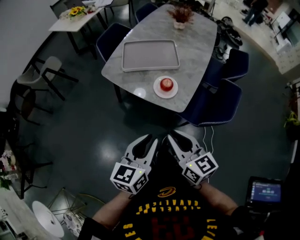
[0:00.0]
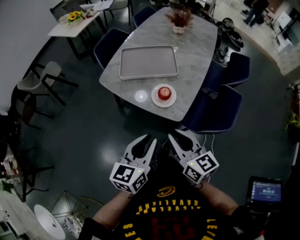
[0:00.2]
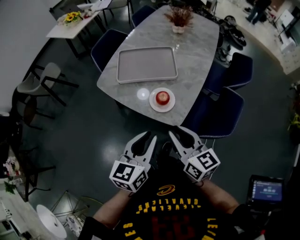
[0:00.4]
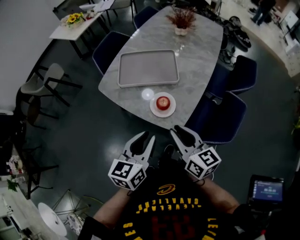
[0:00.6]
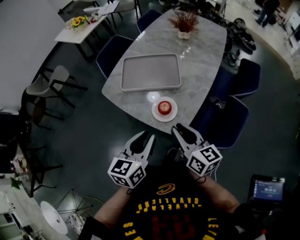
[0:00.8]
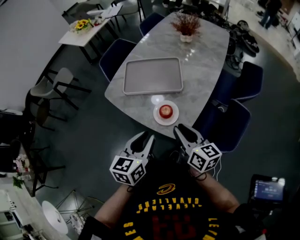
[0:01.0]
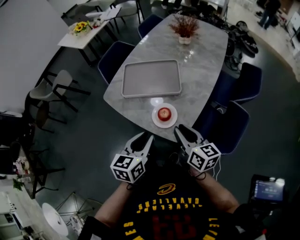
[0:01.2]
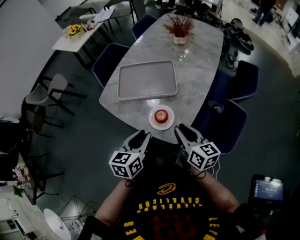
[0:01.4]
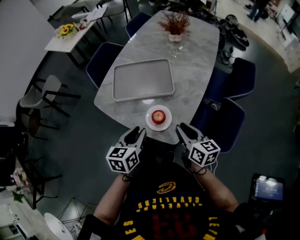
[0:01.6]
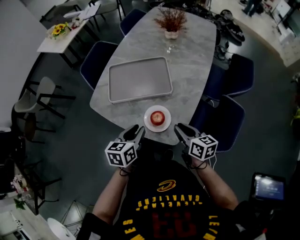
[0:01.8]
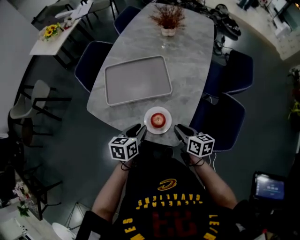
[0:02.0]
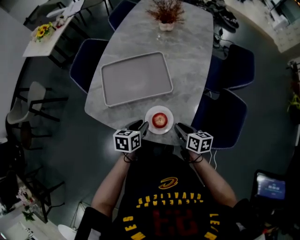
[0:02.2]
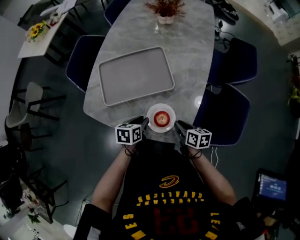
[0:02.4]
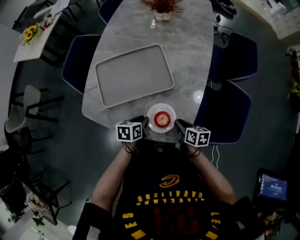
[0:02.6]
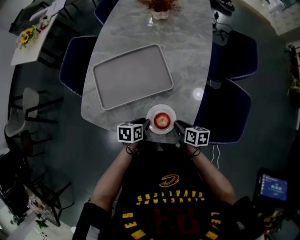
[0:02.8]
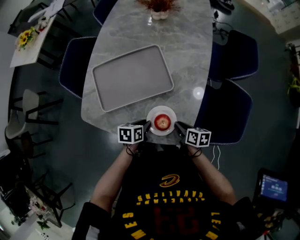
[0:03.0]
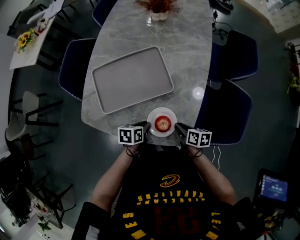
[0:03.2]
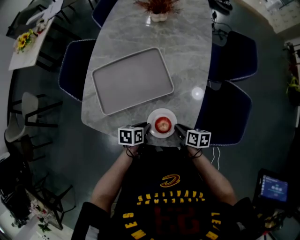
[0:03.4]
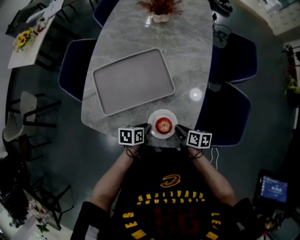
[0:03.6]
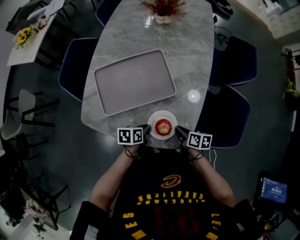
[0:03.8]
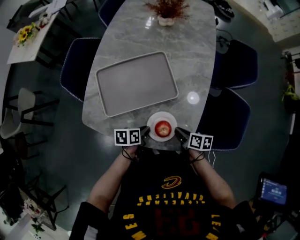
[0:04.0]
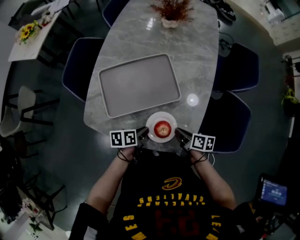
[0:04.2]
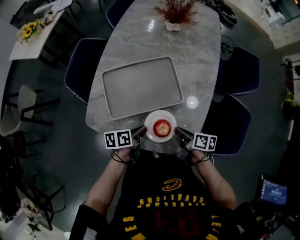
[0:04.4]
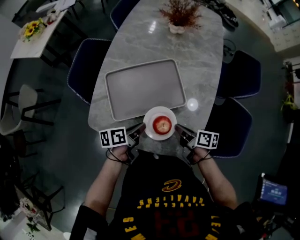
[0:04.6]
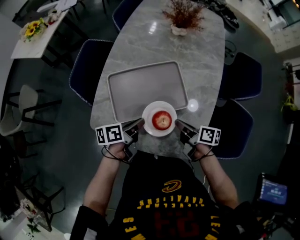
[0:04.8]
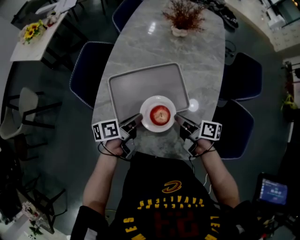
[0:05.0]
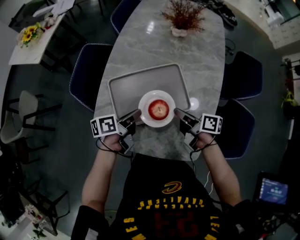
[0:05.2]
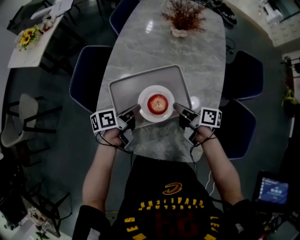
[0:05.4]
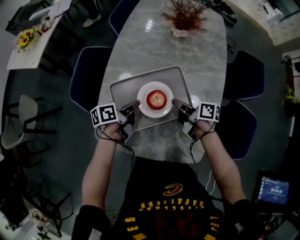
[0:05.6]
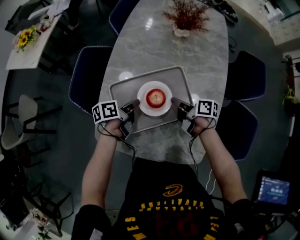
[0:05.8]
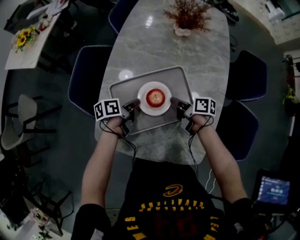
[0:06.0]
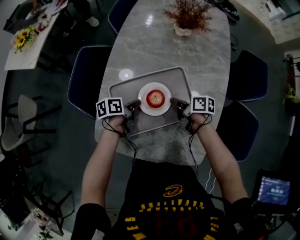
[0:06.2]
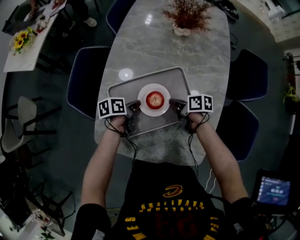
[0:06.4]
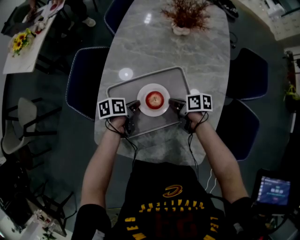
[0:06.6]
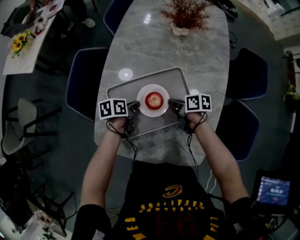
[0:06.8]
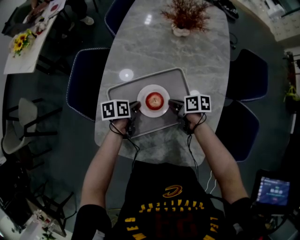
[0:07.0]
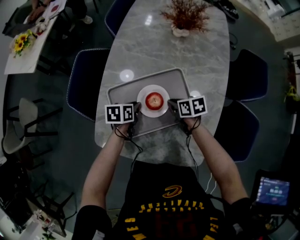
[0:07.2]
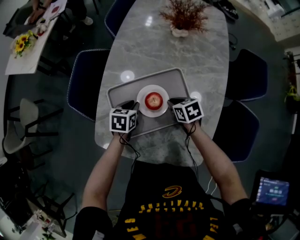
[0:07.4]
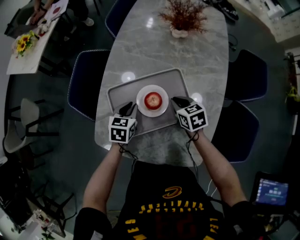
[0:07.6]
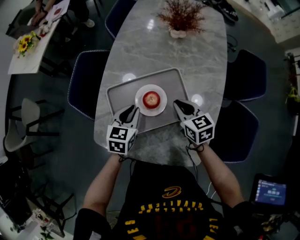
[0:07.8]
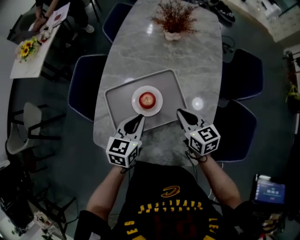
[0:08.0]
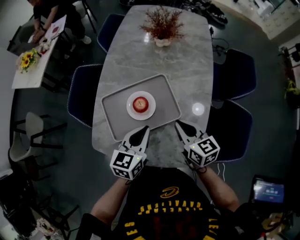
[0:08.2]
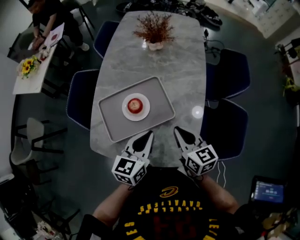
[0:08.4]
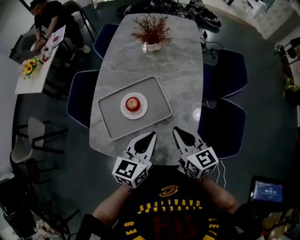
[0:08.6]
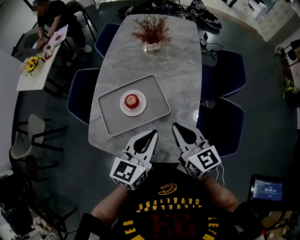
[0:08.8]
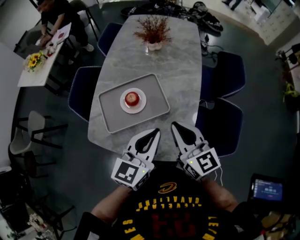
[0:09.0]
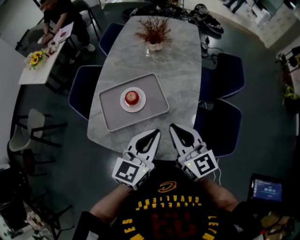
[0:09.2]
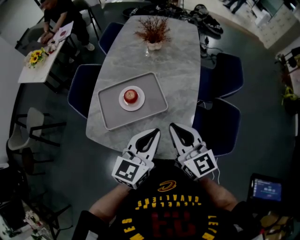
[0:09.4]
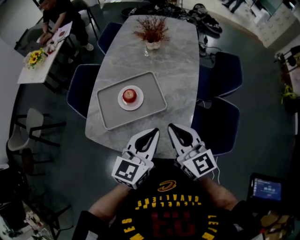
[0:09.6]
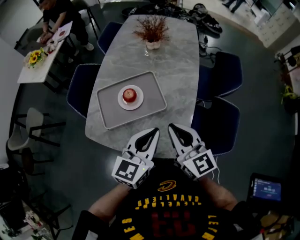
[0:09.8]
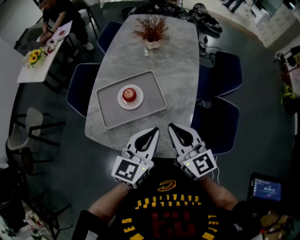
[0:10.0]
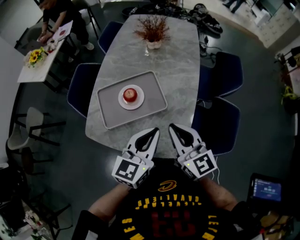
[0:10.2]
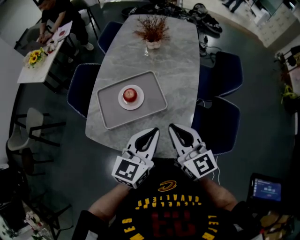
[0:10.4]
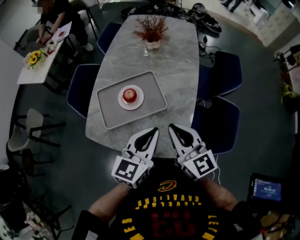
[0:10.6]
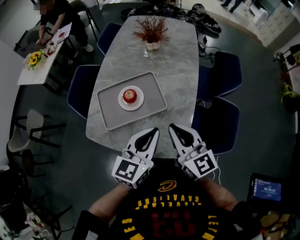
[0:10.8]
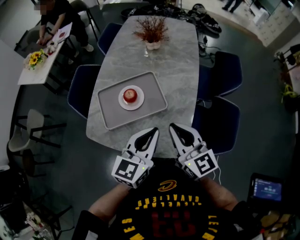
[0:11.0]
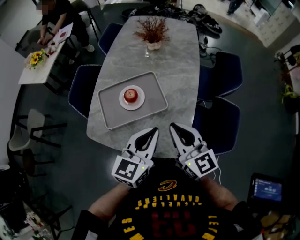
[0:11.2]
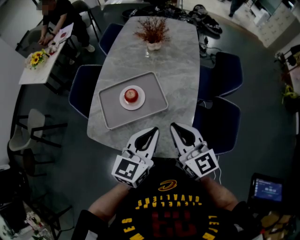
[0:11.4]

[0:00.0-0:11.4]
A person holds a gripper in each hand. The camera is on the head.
0:00.0 to 0:01.4: The right gripper is displaced forward and to the right by about 25 cm. Meanwhile the left gripper shifts approximately 20 cm forward.
0:01.4 to 0:02.8: The left gripper travels downward and forward by approximately 25 cm, and rotates approximately 40 degrees. The right gripper goes roughly 25 cm downward, and points its fingers about 30 degrees further downward.
0:02.8 to 0:04.2: The grippers move only a little.
0:04.2 to 0:05.6: The grippers both shift forward and to the left by approximately 20 cm. The left gripper rotates about 20 degrees.
0:05.6 to 0:07.2: Both grippers travel together downward, some 5 cm. The left gripper turns by roughly 40 degrees. The right gripper swivels roughly 40 degrees.
0:07.2 to 0:08.6: The left gripper is displaced upward, to the right and backward by approximately 35 cm, and angles its fingers upward, by some 30 degrees, while the right gripper is displaced upward, backward and to the right by some 30 cm, and angles its fingers upward, by about 30 degrees.
0:08.6 to 0:10.0: Both grippers move upward, about 5 cm.
0:10.0 to 0:11.4: Both grippers stay about where they are.

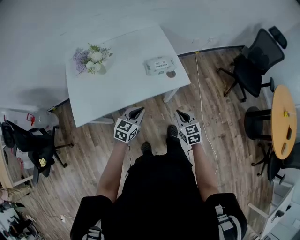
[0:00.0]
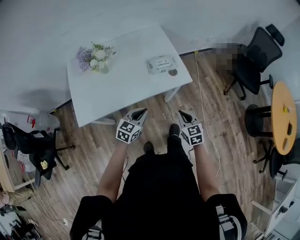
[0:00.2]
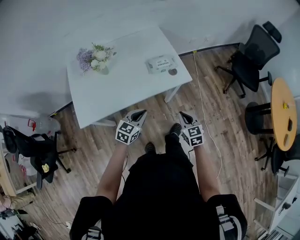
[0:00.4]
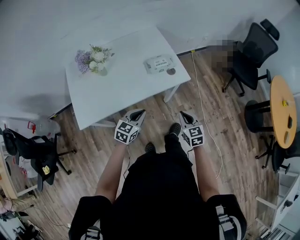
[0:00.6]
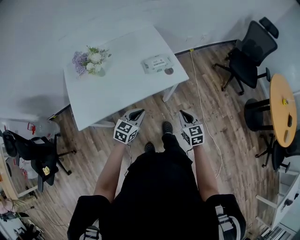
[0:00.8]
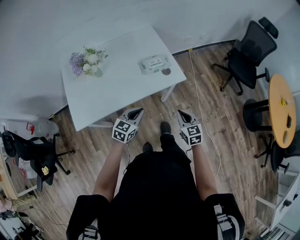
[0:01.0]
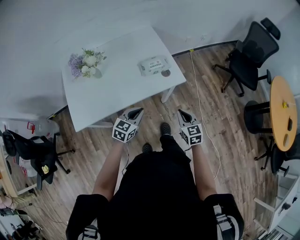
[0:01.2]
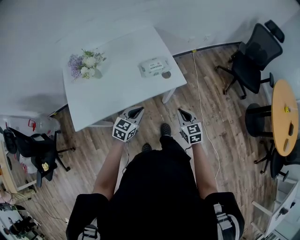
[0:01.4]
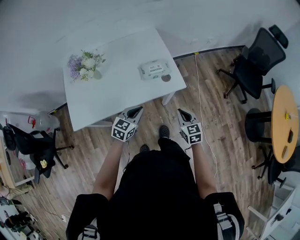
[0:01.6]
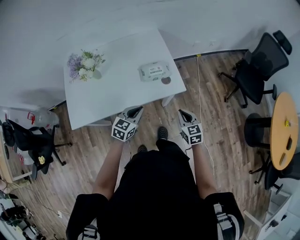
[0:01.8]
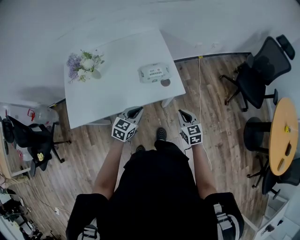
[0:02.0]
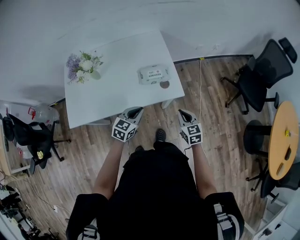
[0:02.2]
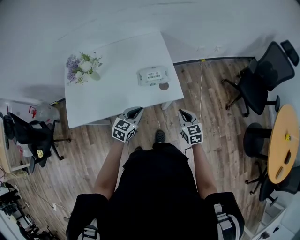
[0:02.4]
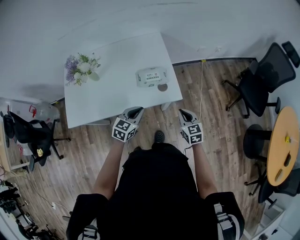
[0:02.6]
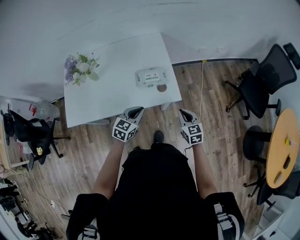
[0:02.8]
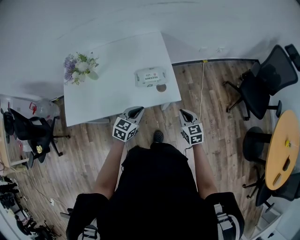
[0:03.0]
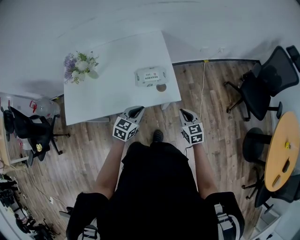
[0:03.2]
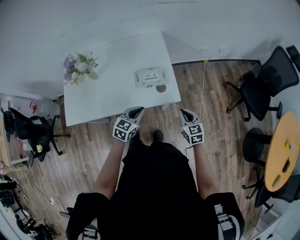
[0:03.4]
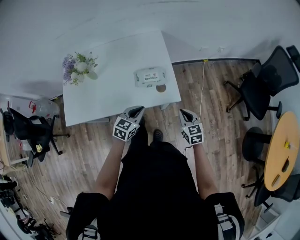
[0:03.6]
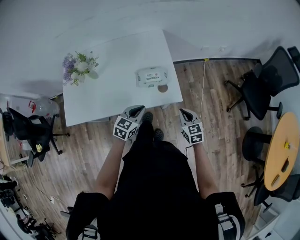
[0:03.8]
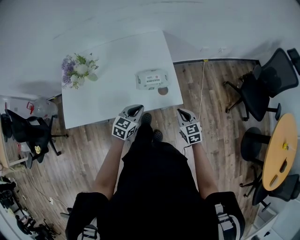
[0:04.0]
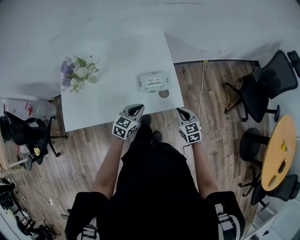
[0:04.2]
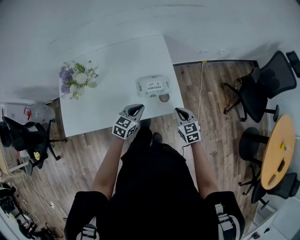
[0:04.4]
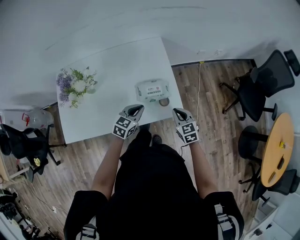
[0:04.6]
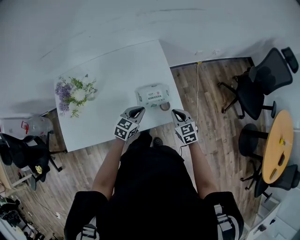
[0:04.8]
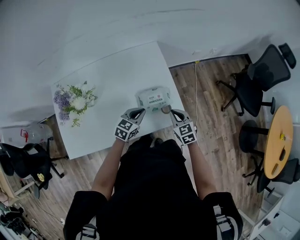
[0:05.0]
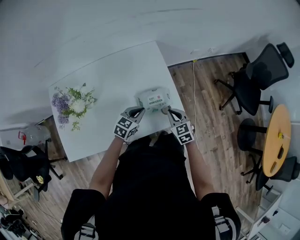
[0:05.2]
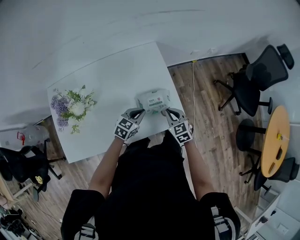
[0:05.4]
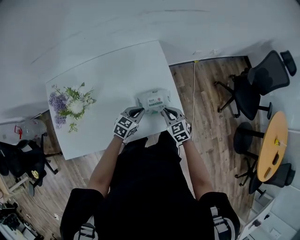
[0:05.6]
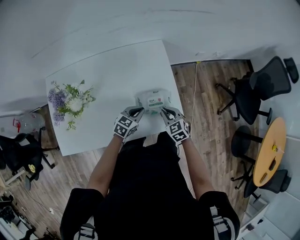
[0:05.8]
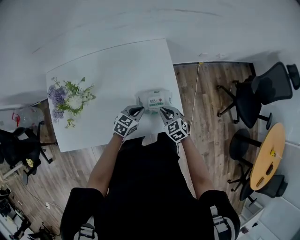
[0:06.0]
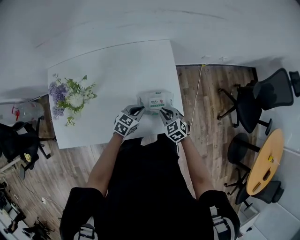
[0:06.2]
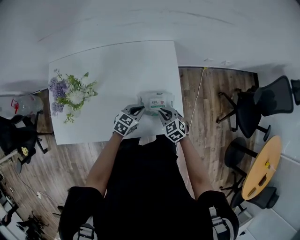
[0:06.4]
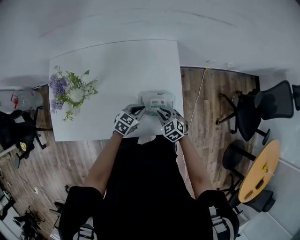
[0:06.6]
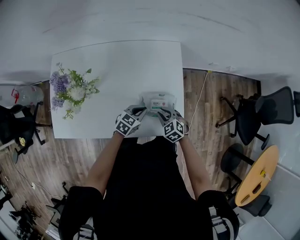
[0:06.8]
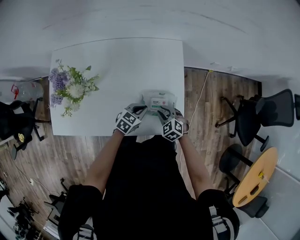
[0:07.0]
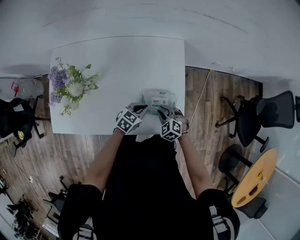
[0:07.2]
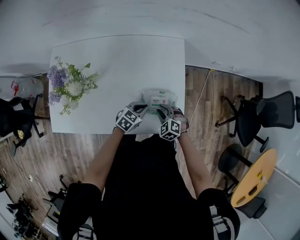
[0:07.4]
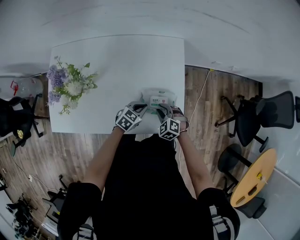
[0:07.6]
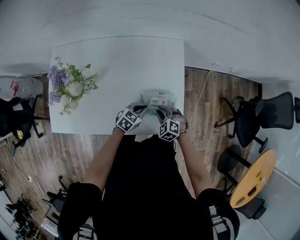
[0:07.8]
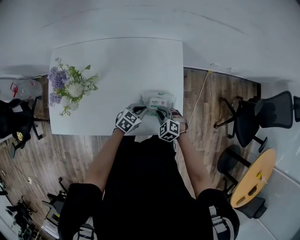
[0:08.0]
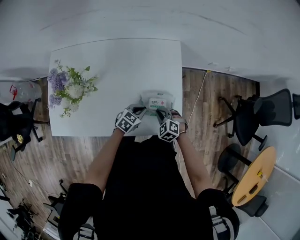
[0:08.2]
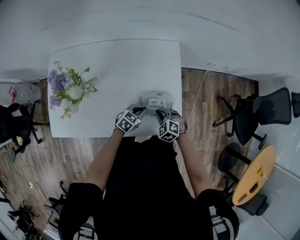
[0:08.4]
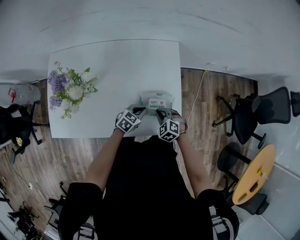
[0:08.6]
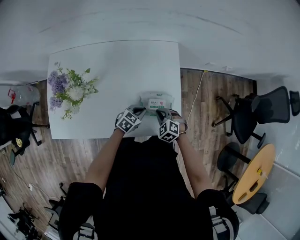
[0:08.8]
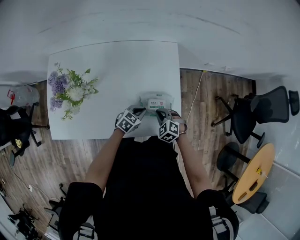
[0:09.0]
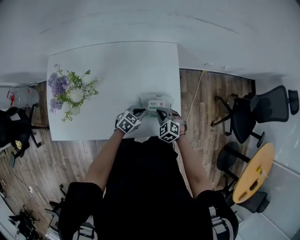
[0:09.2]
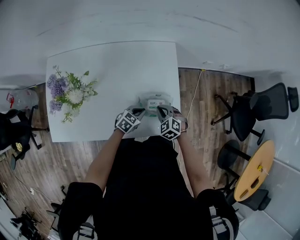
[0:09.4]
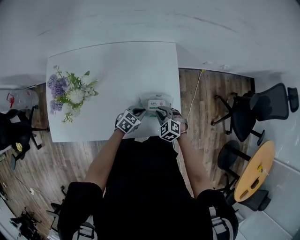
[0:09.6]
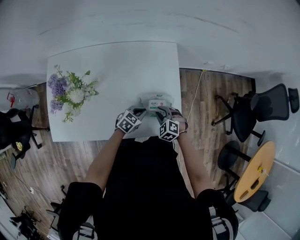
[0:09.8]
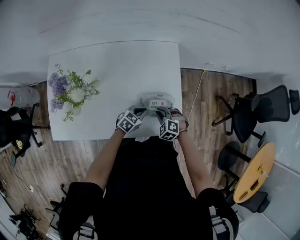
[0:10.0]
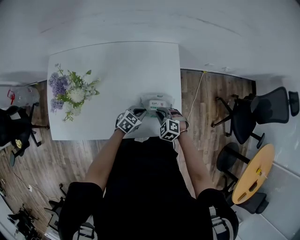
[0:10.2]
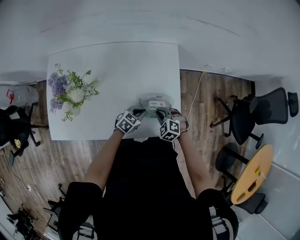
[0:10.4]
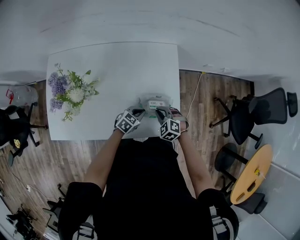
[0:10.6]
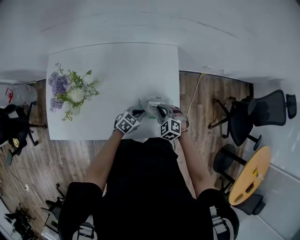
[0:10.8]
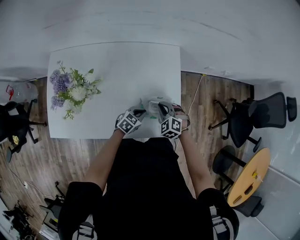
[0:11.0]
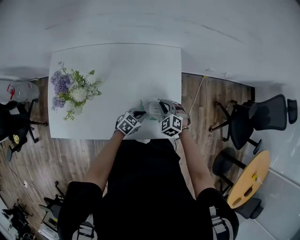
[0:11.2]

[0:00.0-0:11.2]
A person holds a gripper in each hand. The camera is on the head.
0:00.0 to 0:01.6: The left gripper moves about 5 cm, while the right gripper shifts approximately 5 cm forward.
0:01.6 to 0:03.2: The left gripper shifts about 10 cm to the right and forward. Meanwhile the right gripper travels forward and to the right by some 15 cm.
0:03.2 to 0:04.8: The grippers both shift forward and to the left by roughly 20 cm.
0:04.8 to 0:06.4: The left gripper moves downward and forward, about 10 cm; the right gripper shifts about 15 cm to the left, downward and forward, and changes its angle by roughly 30 degrees.
0:06.4 to 0:08.0: The right gripper swivels some 20 degrees.
0:08.0 to 0:09.6: The grippers move only a little.
0:09.6 to 0:11.2: The right gripper moves forward, approximately 5 cm.

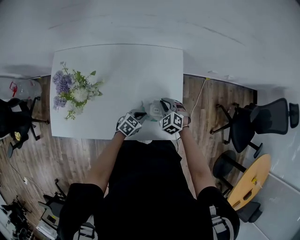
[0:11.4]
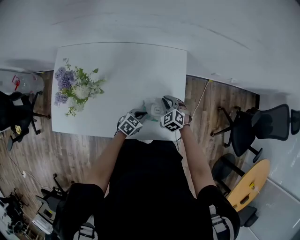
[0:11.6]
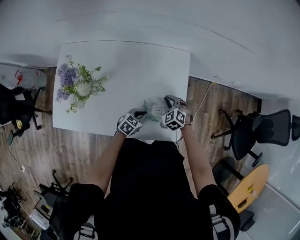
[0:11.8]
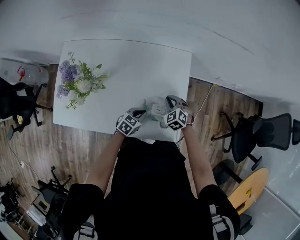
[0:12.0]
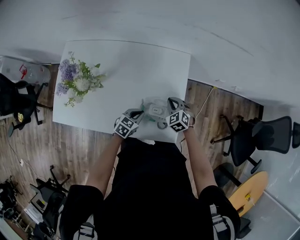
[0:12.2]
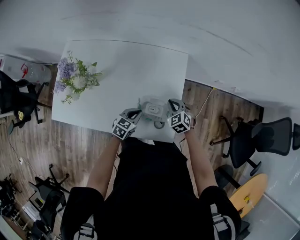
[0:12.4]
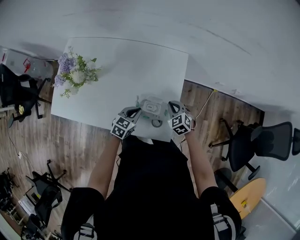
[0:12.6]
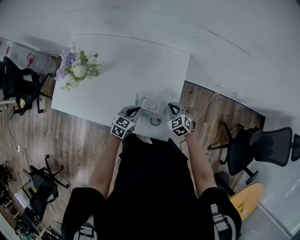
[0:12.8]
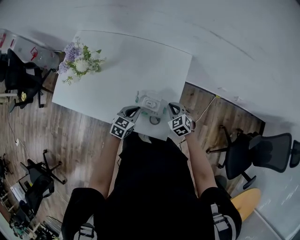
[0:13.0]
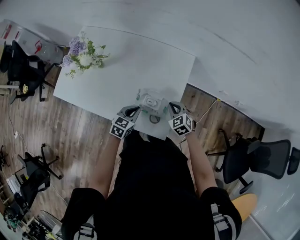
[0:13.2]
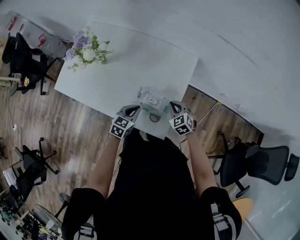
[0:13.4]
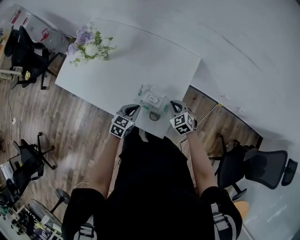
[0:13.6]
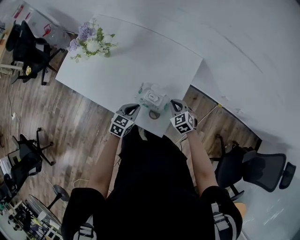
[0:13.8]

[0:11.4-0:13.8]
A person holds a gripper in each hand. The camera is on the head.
0:11.4 to 0:12.6: The left gripper shifts some 5 cm upward, and changes its angle by some 20 degrees. The right gripper travels to the right by roughly 10 cm.
0:12.6 to 0:13.8: The left gripper shifts roughly 5 cm backward.
